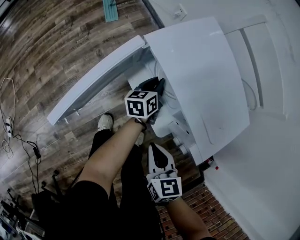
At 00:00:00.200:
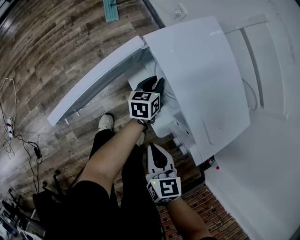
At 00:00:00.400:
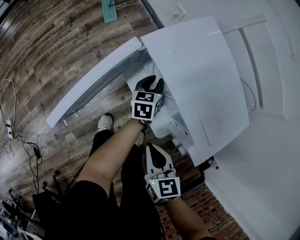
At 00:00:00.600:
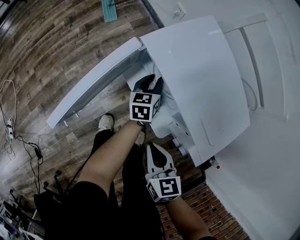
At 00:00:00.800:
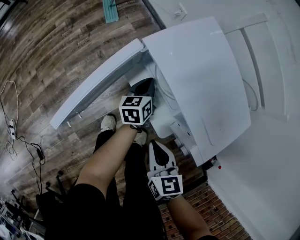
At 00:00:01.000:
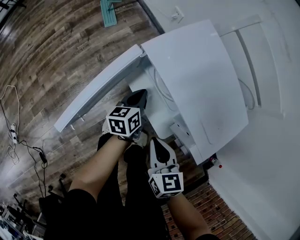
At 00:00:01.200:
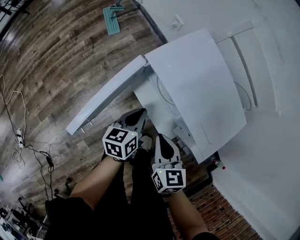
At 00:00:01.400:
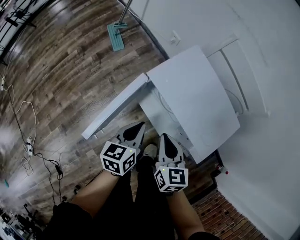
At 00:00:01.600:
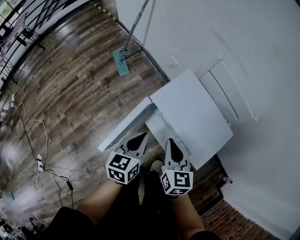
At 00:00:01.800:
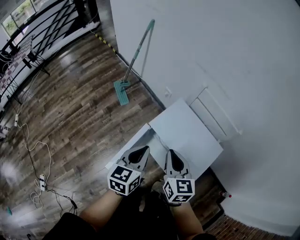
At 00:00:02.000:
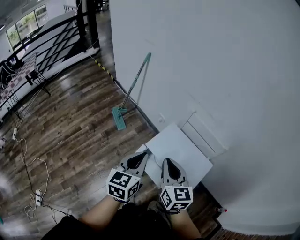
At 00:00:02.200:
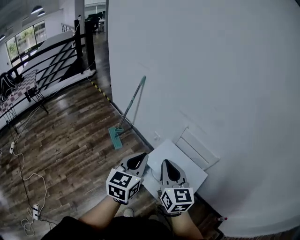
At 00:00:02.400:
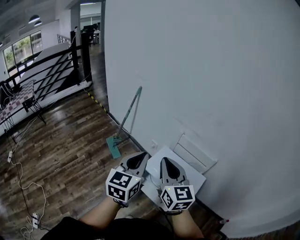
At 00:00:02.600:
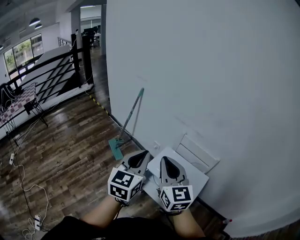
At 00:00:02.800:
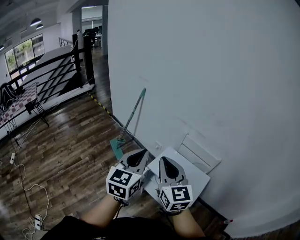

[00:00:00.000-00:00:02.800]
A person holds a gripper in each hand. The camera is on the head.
00:00:00.000 to 00:00:01.400: The right gripper shifts by some 15 cm.
00:00:01.400 to 00:00:02.800: The right gripper shifts roughly 40 cm upward, and points its fingers about 30 degrees further upward.

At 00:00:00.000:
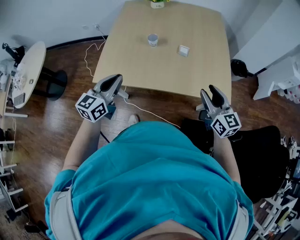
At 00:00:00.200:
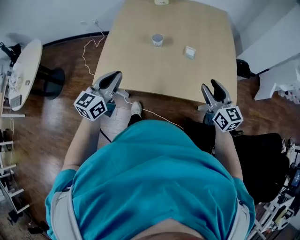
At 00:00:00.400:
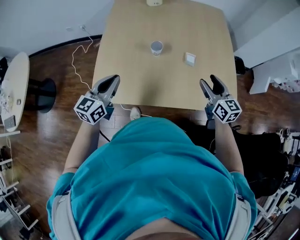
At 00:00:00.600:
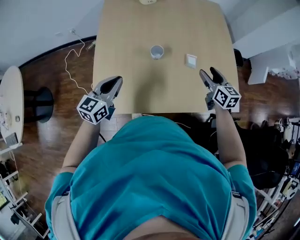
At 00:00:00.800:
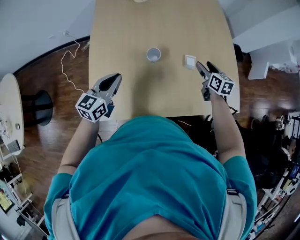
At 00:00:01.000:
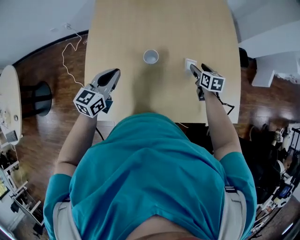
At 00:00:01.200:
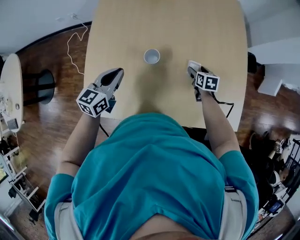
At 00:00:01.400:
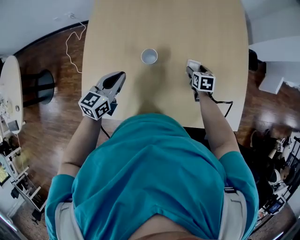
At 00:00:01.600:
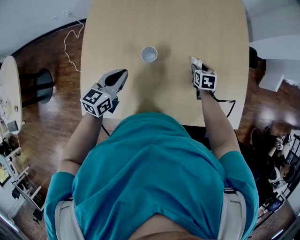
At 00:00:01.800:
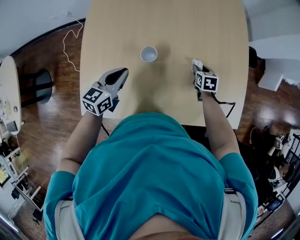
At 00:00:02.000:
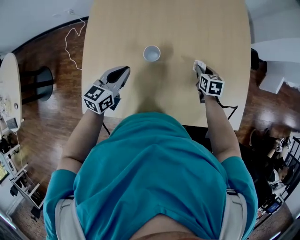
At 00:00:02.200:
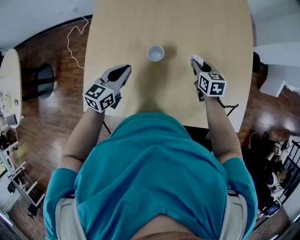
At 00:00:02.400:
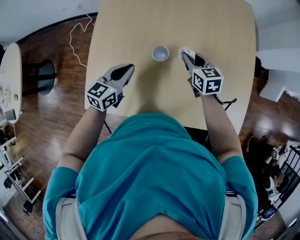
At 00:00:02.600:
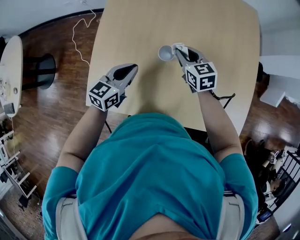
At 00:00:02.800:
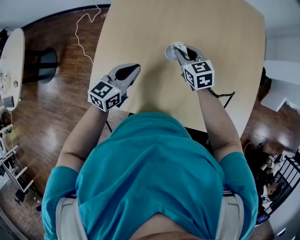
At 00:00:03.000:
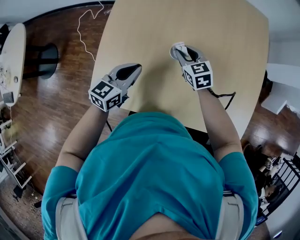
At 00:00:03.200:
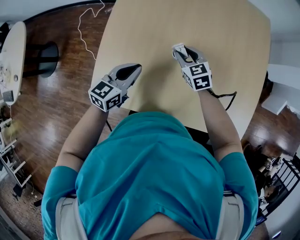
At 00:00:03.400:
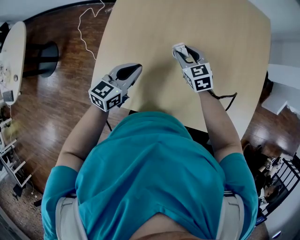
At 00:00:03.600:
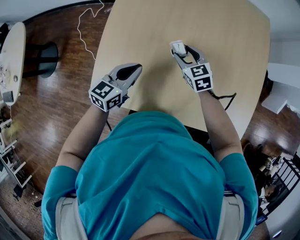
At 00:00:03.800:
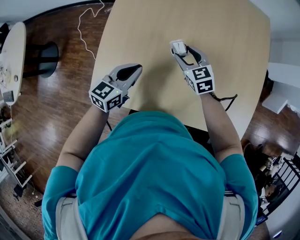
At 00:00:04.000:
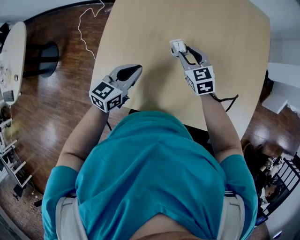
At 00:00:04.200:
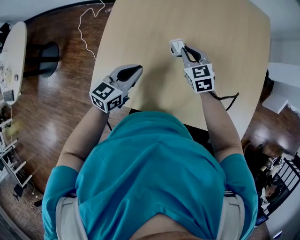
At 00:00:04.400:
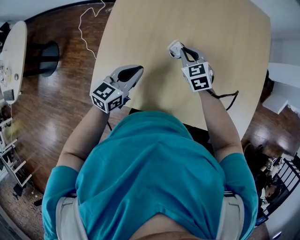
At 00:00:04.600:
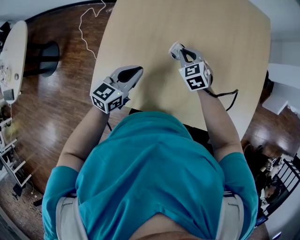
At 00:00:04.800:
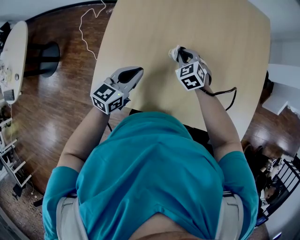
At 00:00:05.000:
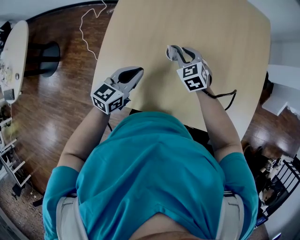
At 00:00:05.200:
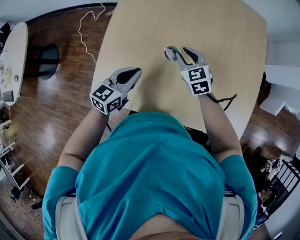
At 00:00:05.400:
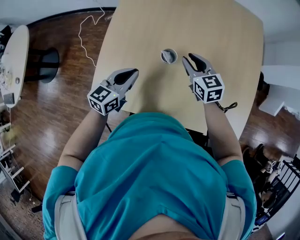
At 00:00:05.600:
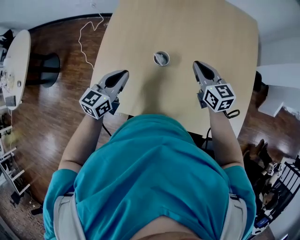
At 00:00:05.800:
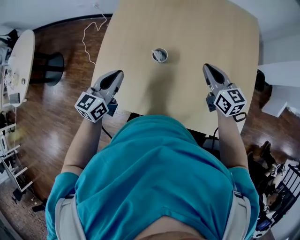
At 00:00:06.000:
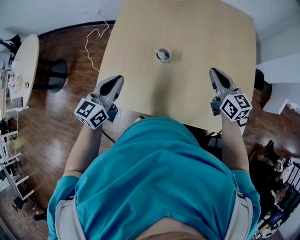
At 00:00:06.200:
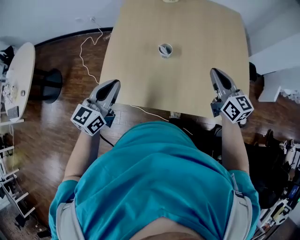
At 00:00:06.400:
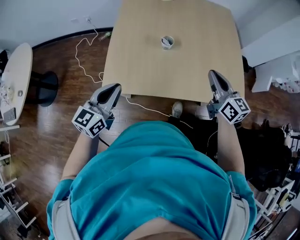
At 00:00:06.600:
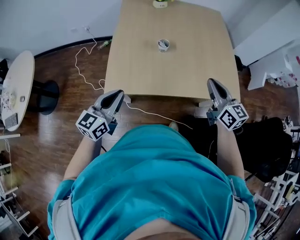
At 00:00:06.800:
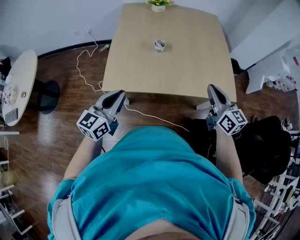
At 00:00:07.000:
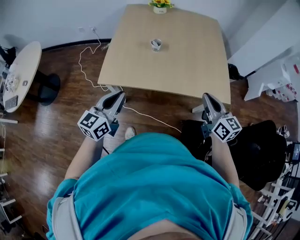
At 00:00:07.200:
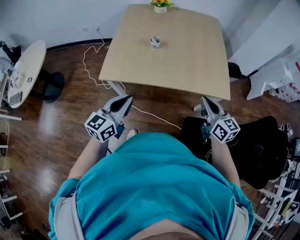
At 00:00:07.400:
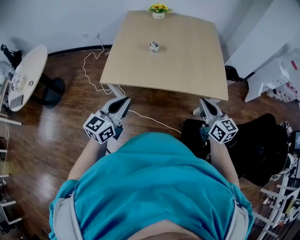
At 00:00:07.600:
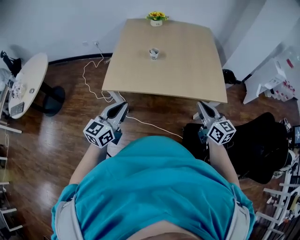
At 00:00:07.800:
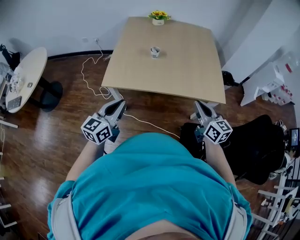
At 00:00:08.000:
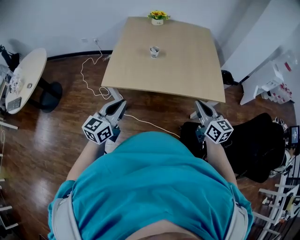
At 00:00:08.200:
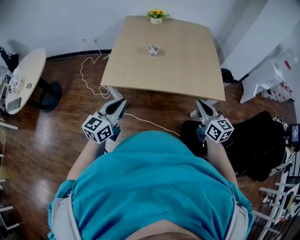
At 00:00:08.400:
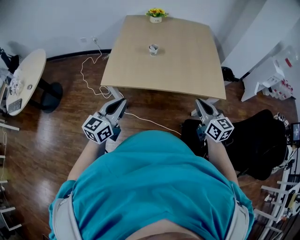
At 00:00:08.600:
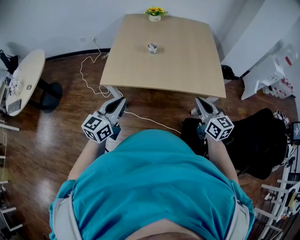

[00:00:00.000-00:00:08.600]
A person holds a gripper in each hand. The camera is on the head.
00:00:00.000 to 00:00:01.400: The two grippers go roughly 35 cm forward and downward. The right gripper tips its fingers downward by approximately 50 degrees, and opens its fingers.
00:00:01.400 to 00:00:02.800: The right gripper shifts about 25 cm to the left and upward, swivels some 40 degrees, and closes its fingers.
00:00:02.800 to 00:00:04.400: The right gripper opens, then closes again.
00:00:04.400 to 00:00:05.800: The right gripper travels to the right and upward by approximately 20 cm, and changes its angle by about 30 degrees. Meanwhile the left gripper moves upward, some 5 cm.
00:00:05.800 to 00:00:07.200: The grippers both shift backward by some 40 cm.
00:00:07.200 to 00:00:08.600: The grippers make only small movements.

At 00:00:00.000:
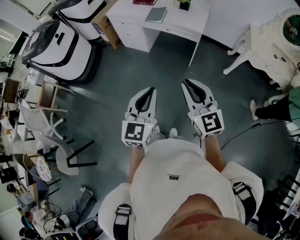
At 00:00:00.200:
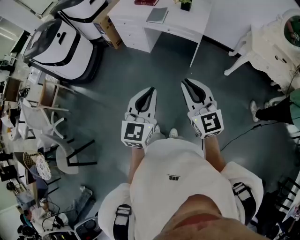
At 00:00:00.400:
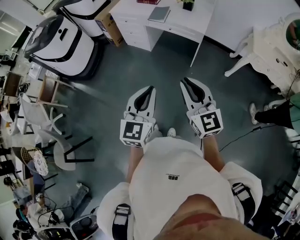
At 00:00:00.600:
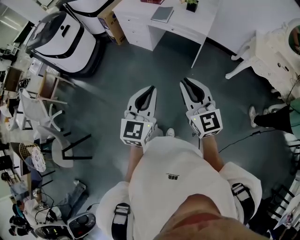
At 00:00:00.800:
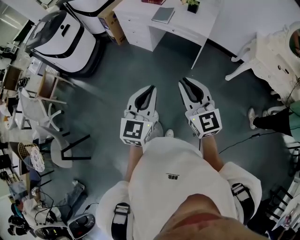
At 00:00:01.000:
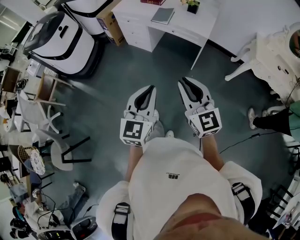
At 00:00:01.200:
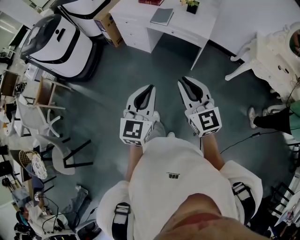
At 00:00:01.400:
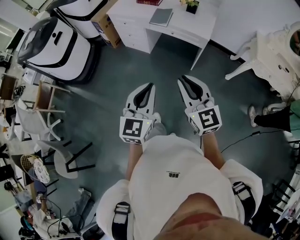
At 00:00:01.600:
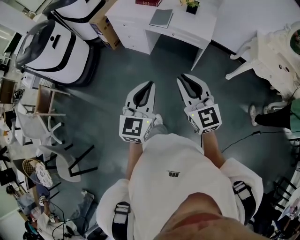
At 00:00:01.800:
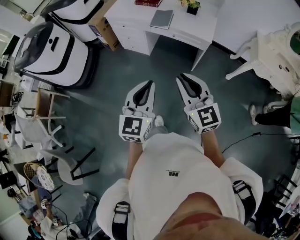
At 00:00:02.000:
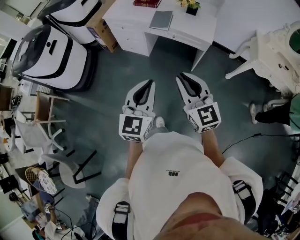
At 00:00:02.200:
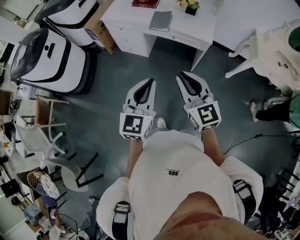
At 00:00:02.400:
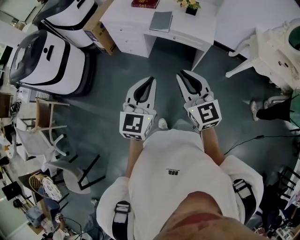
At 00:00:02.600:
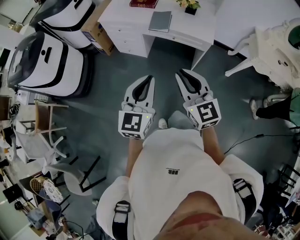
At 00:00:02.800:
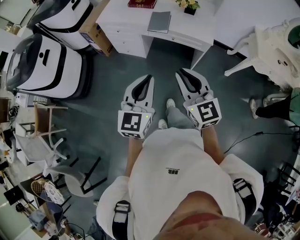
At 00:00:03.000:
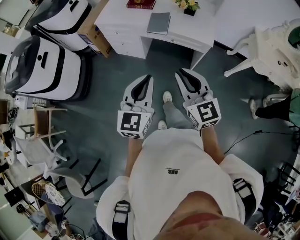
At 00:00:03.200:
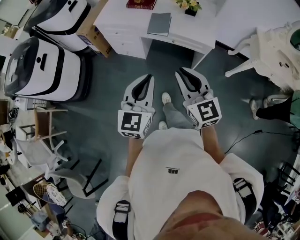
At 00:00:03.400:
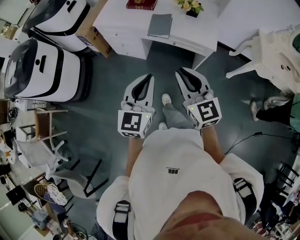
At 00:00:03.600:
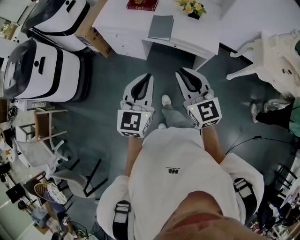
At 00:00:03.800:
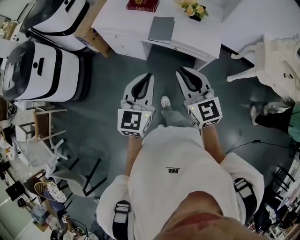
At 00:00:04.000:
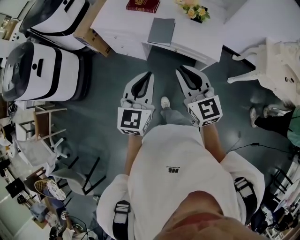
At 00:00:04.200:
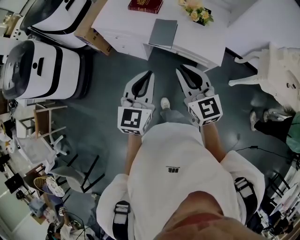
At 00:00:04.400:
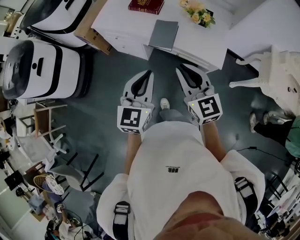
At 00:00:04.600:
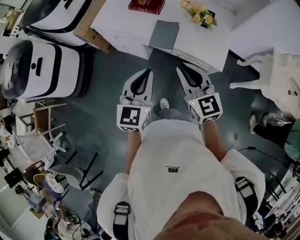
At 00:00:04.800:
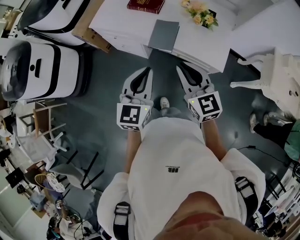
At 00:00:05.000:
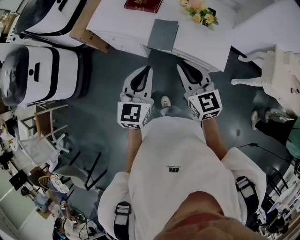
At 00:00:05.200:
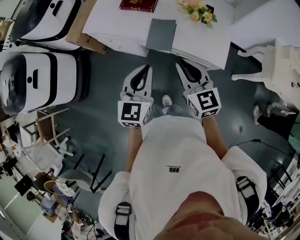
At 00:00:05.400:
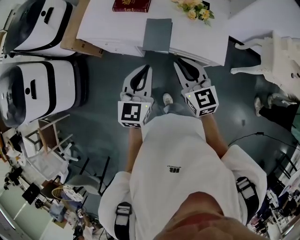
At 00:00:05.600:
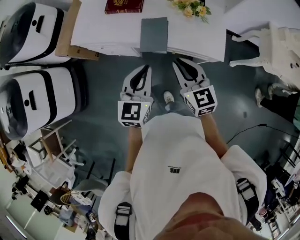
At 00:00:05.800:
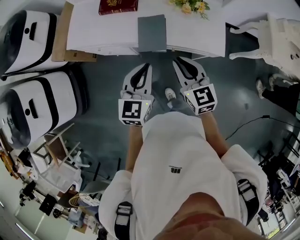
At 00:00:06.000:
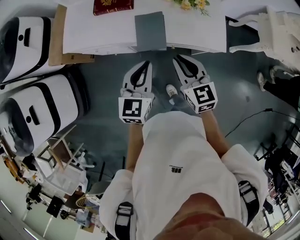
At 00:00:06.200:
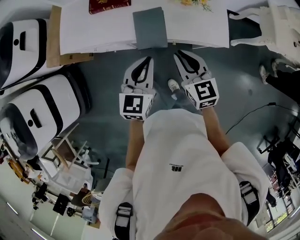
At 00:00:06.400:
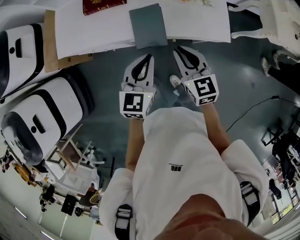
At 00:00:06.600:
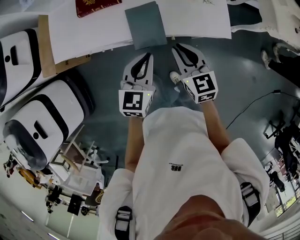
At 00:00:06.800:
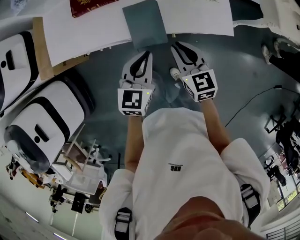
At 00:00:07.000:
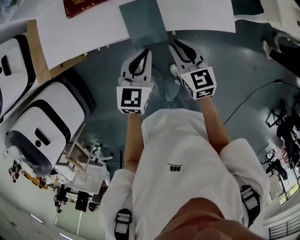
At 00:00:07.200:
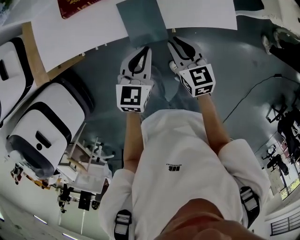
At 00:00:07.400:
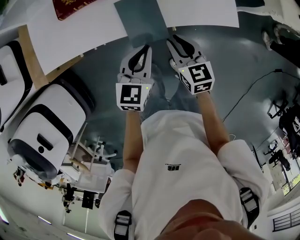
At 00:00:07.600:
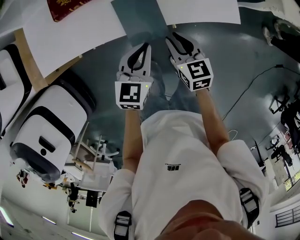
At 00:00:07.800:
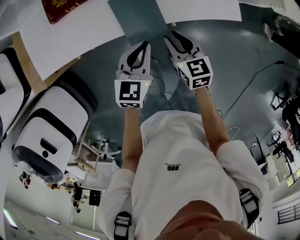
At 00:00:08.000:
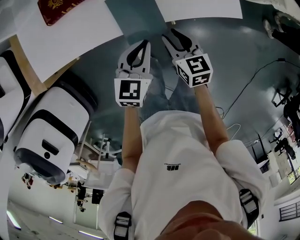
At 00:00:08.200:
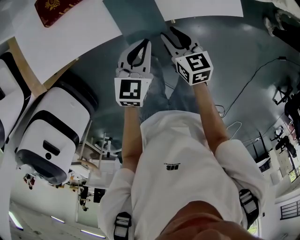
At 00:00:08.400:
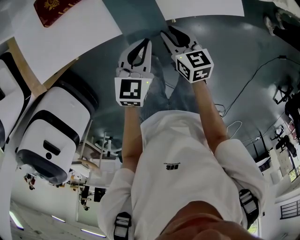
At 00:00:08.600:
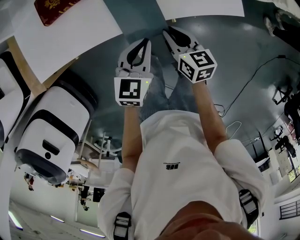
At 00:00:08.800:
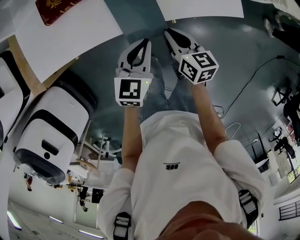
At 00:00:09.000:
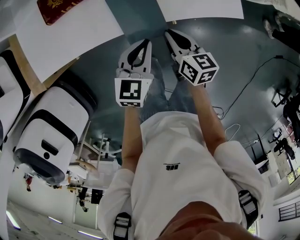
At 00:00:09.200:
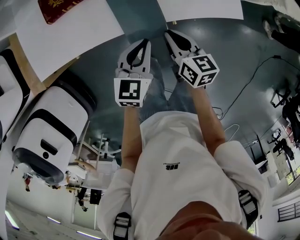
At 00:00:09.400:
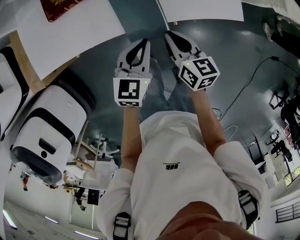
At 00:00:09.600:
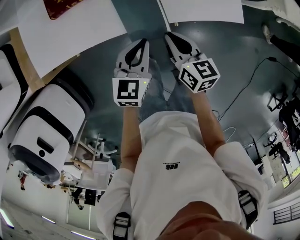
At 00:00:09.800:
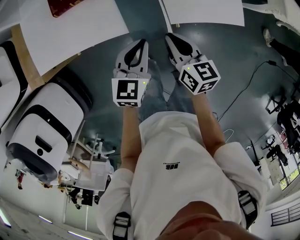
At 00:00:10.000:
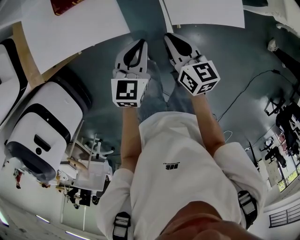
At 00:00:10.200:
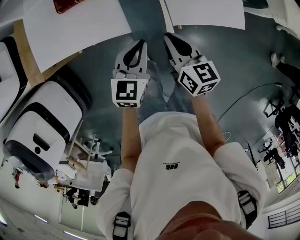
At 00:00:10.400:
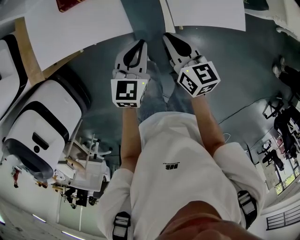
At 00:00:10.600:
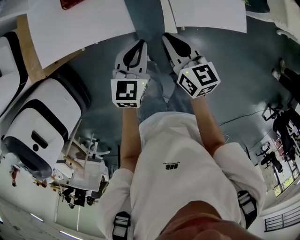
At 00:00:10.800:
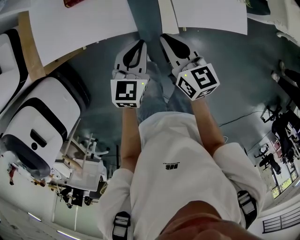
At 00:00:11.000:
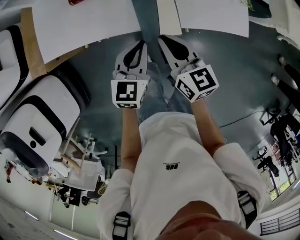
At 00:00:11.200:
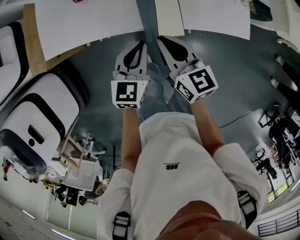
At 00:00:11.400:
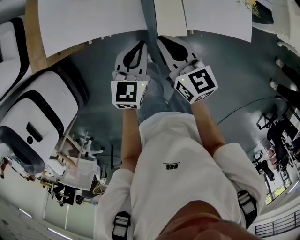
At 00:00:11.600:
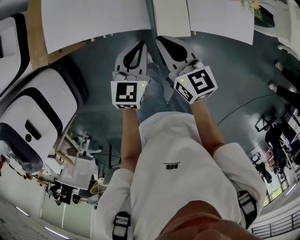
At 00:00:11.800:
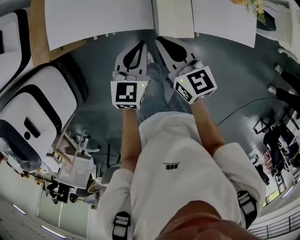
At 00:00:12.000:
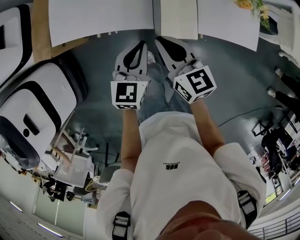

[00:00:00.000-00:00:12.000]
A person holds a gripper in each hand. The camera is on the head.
00:00:00.000 to 00:00:01.600: Both grippers travel together forward, roughly 15 cm.
00:00:01.600 to 00:00:03.000: The grippers both shift forward by approximately 15 cm.
00:00:03.000 to 00:00:04.400: Both grippers move forward, about 25 cm.
00:00:04.400 to 00:00:06.000: The grippers both shift forward and downward by roughly 20 cm. The right gripper turns by roughly 20 degrees.
00:00:06.000 to 00:00:07.600: The right gripper shifts roughly 20 cm downward, and turns by approximately 20 degrees, while the left gripper moves downward and forward, roughly 15 cm, and swivels approximately 20 degrees.
00:00:07.600 to 00:00:09.000: The right gripper rotates roughly 20 degrees.
00:00:09.000 to 00:00:10.400: The right gripper shifts some 5 cm upward, while the left gripper shifts by about 5 cm.
00:00:10.400 to 00:00:12.000: Both grippers travel together to the left, approximately 10 cm.
